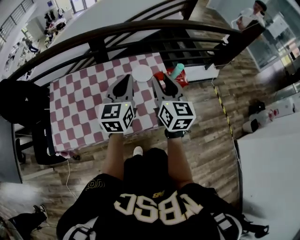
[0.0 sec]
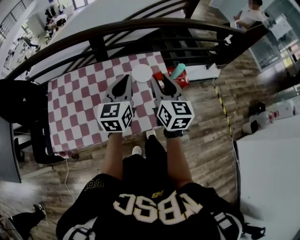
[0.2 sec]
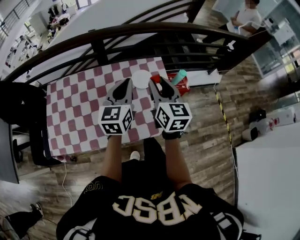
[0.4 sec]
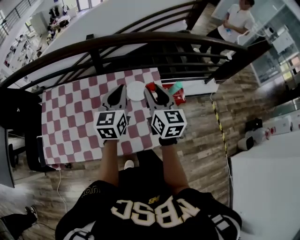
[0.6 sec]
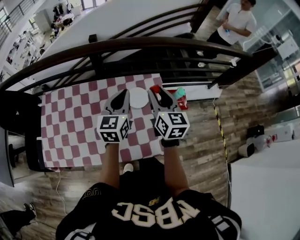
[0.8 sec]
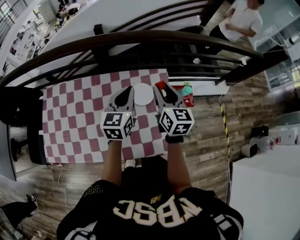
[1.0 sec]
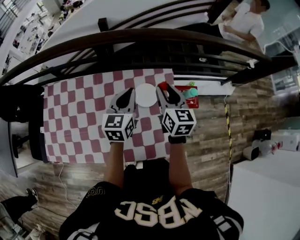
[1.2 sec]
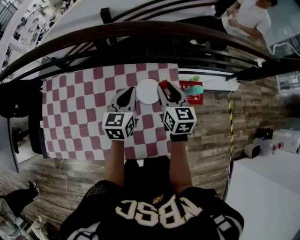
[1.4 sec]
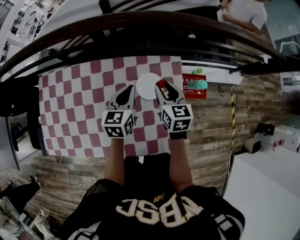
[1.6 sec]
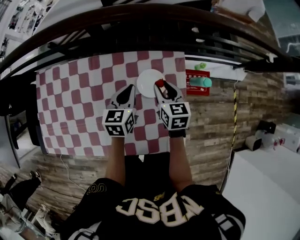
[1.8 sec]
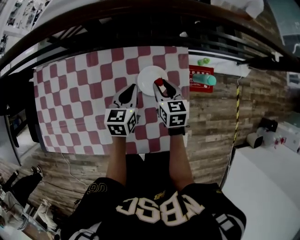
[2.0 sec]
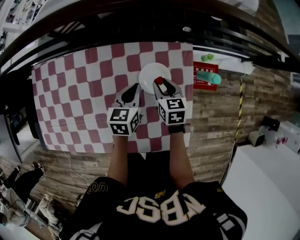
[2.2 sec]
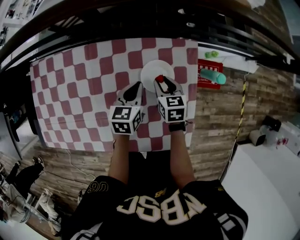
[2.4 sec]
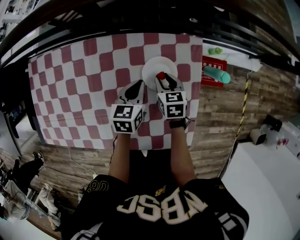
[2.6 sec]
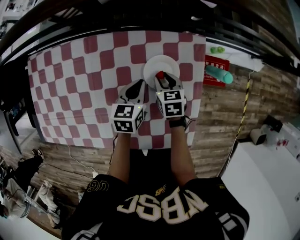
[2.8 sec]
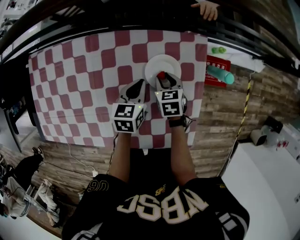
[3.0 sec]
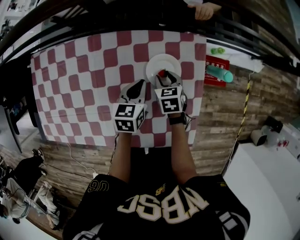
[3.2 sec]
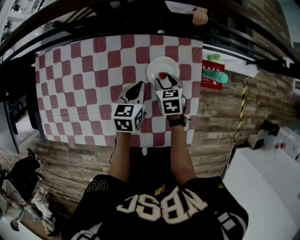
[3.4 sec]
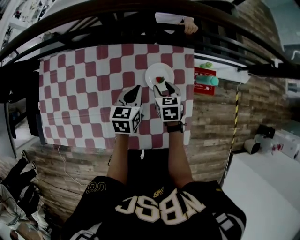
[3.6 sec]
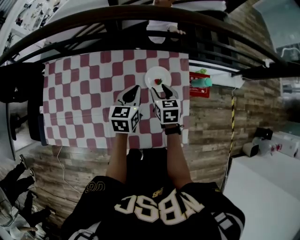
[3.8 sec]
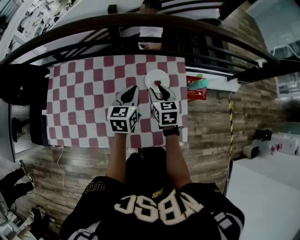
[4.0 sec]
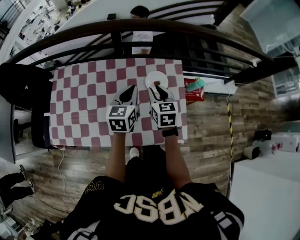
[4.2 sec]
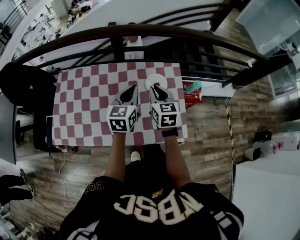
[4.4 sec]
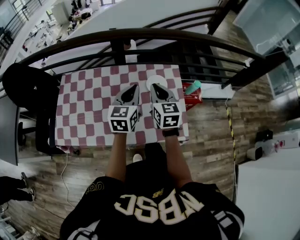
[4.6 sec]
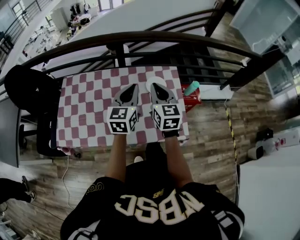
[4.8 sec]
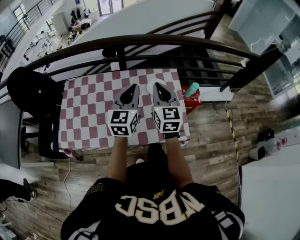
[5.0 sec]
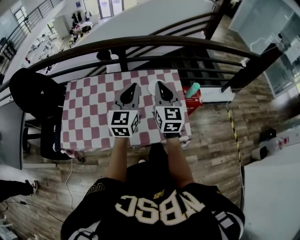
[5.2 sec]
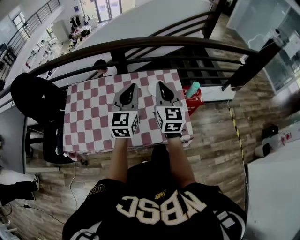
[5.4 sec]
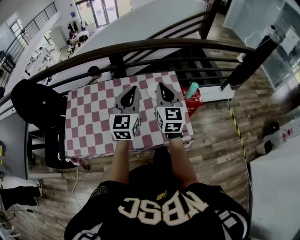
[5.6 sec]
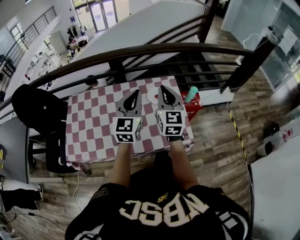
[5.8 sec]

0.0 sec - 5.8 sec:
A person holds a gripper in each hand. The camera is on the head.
0.0 sec - 1.4 sec: The grippers both shift forward and downward by approximately 30 cm. The right gripper swivels approximately 20 degrees.
1.4 sec - 2.8 sec: The two grippers go about 25 cm downward. The right gripper rotates about 30 degrees. Meanwhile the left gripper turns by some 20 degrees.
2.8 sec - 4.4 sec: Both grippers travel together upward and backward, about 30 cm. The right gripper turns by some 30 degrees, while the left gripper rotates about 30 degrees.
4.4 sec - 5.8 sec: Both grippers move upward and backward, roughly 15 cm. The left gripper swivels about 30 degrees; the right gripper rotates some 30 degrees.

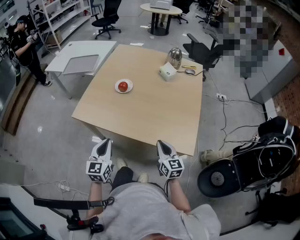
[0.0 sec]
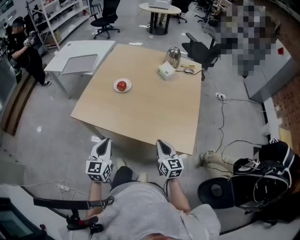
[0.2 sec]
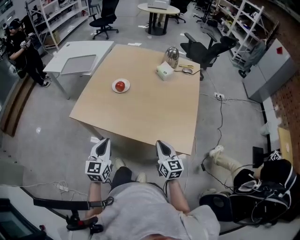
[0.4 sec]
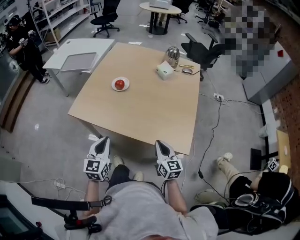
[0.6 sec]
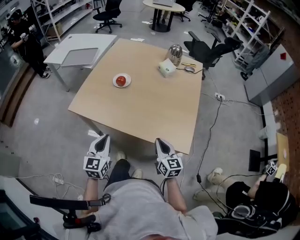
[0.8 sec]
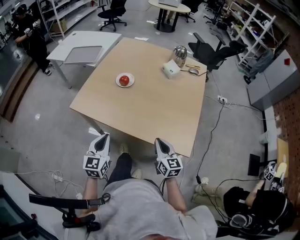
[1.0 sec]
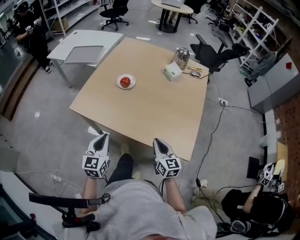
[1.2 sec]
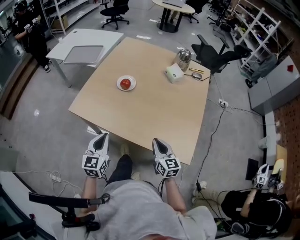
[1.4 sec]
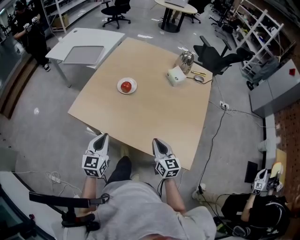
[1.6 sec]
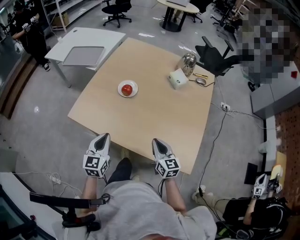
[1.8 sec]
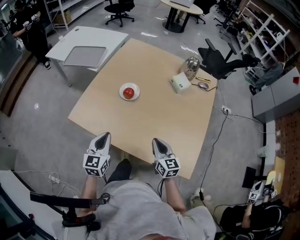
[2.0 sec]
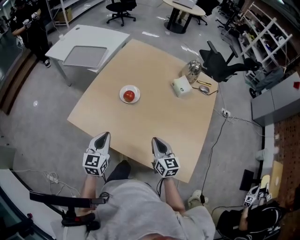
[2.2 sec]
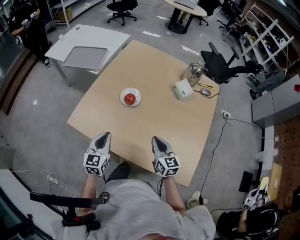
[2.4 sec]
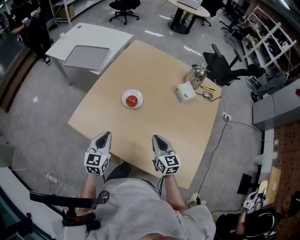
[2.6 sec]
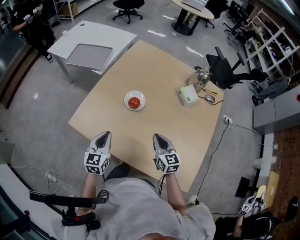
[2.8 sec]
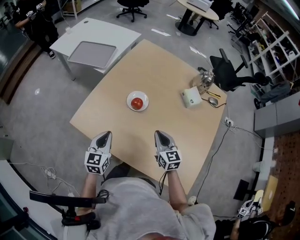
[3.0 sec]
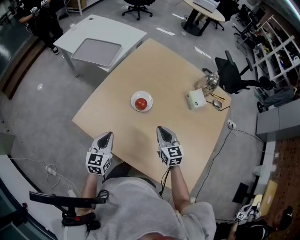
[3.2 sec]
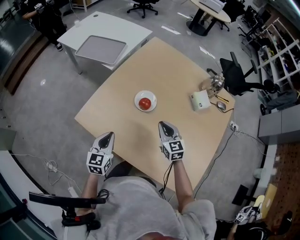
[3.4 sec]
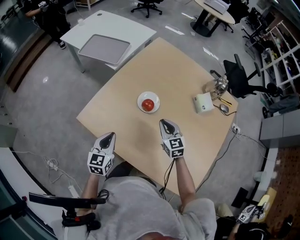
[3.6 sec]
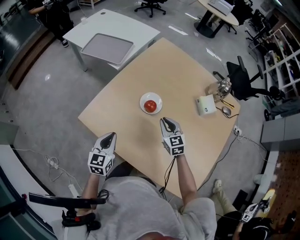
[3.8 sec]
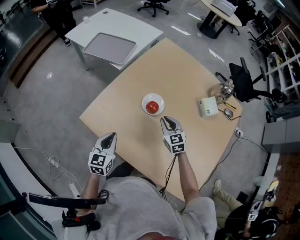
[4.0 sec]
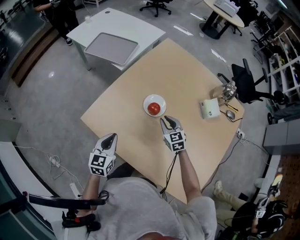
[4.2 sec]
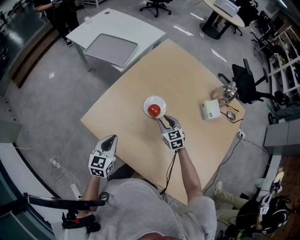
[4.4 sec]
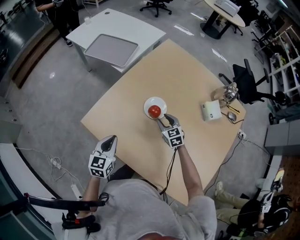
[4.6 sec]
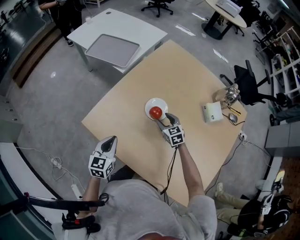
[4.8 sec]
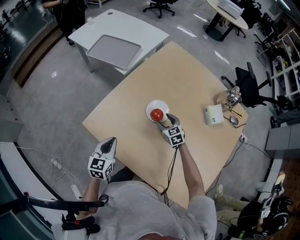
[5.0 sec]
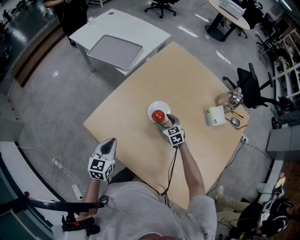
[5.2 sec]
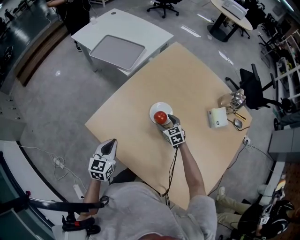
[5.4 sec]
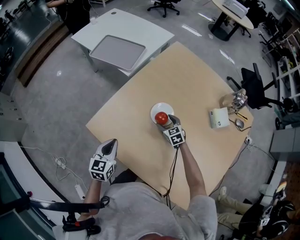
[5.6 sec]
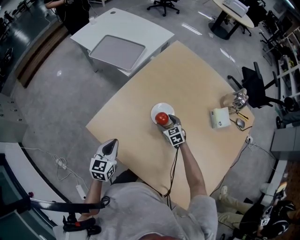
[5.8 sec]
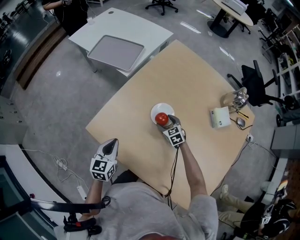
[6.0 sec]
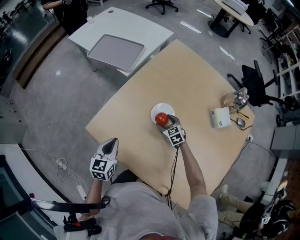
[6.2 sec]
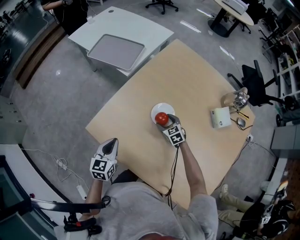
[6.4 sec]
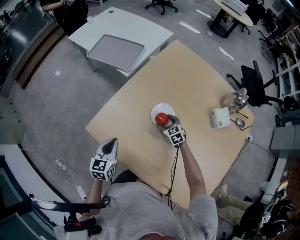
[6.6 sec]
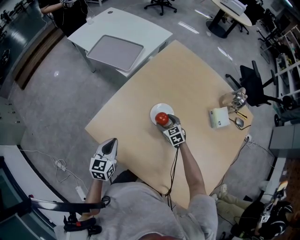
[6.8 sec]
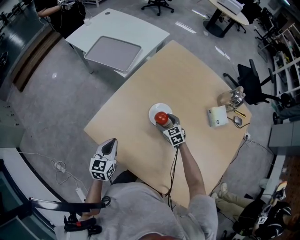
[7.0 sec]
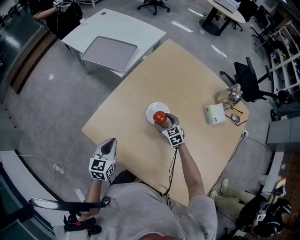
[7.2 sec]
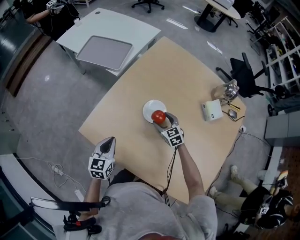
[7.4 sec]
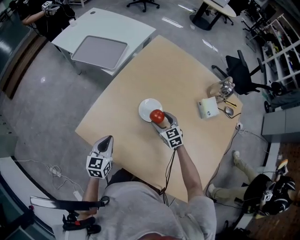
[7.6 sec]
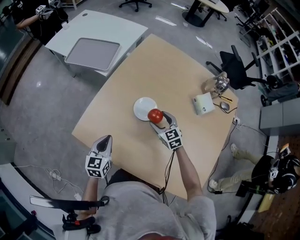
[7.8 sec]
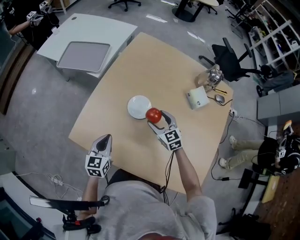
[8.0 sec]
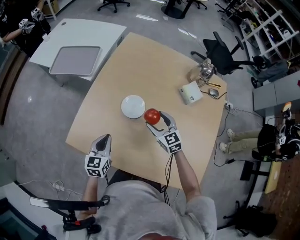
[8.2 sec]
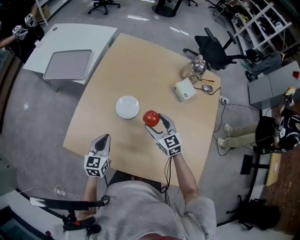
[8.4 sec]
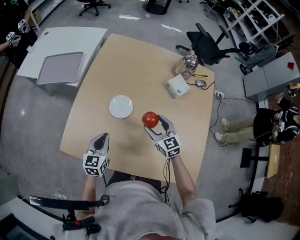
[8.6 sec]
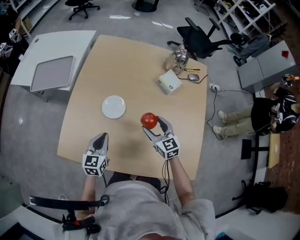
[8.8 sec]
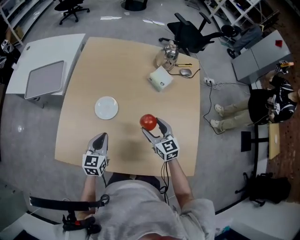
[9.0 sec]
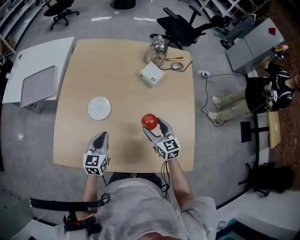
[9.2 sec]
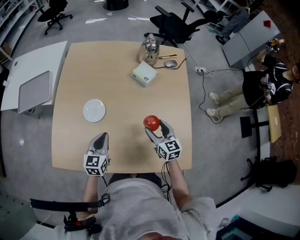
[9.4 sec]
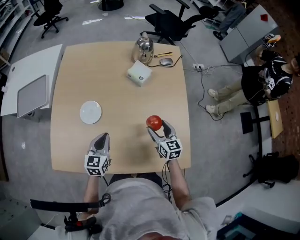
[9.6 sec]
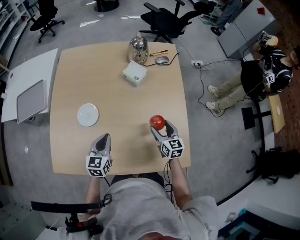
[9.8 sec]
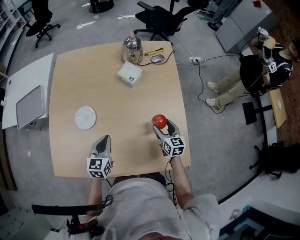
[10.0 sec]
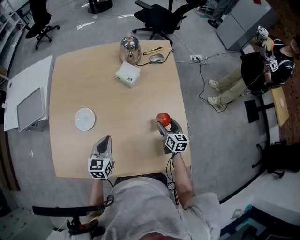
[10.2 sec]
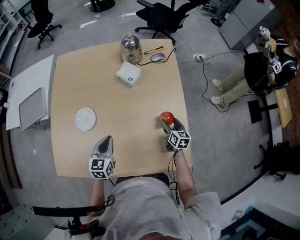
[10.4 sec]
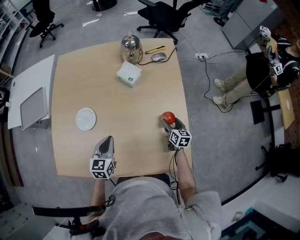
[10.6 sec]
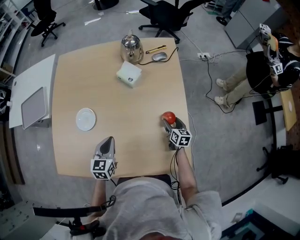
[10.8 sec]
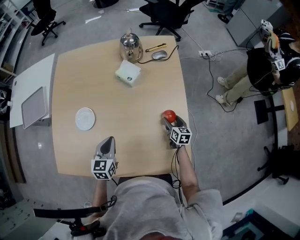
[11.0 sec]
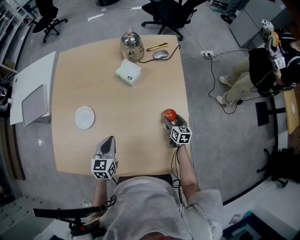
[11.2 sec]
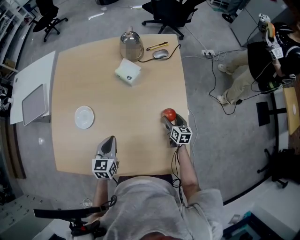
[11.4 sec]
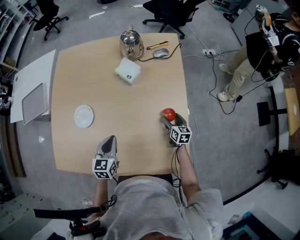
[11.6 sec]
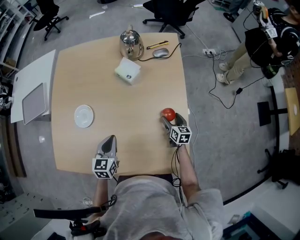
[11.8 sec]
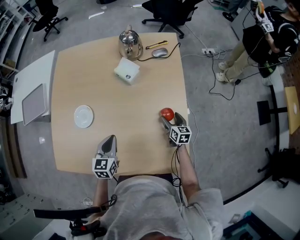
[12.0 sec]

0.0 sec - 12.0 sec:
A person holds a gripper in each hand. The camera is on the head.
0.0 sec - 1.6 sec: Both grippers move forward, roughly 10 cm.
1.6 sec - 3.0 sec: The grippers both shift forward by some 20 cm.
3.0 sec - 4.4 sec: The left gripper shifts by roughly 5 cm, while the right gripper heads forward and downward, covering roughly 20 cm, and changes its angle by some 20 degrees.
4.4 sec - 6.0 sec: The left gripper changes place by approximately 5 cm, while the right gripper goes approximately 10 cm downward and forward, and opens its fingers.
6.0 sec - 7.6 sec: The right gripper is displaced upward by roughly 5 cm.
7.6 sec - 9.0 sec: The right gripper changes place by roughly 20 cm, and turns by approximately 30 degrees. Meanwhile the left gripper shifts by about 15 cm, and changes its angle by approximately 20 degrees.
9.0 sec - 10.4 sec: The left gripper moves to the right, approximately 15 cm, while the right gripper moves to the right and downward, about 30 cm, and rotates roughly 40 degrees.
10.4 sec - 12.0 sec: The right gripper changes place by approximately 5 cm; the left gripper ends up about 5 cm from where it was.

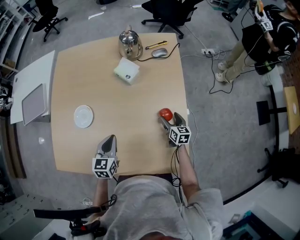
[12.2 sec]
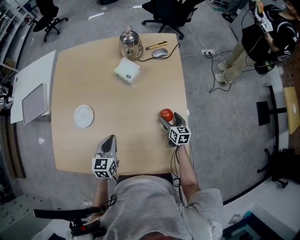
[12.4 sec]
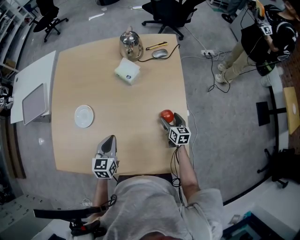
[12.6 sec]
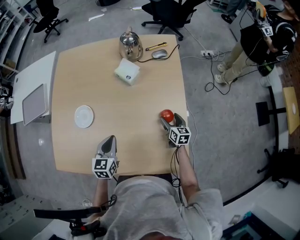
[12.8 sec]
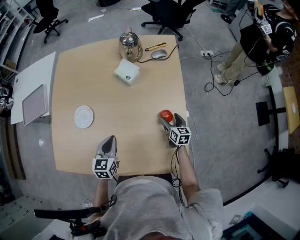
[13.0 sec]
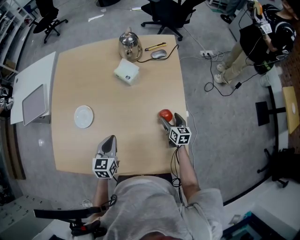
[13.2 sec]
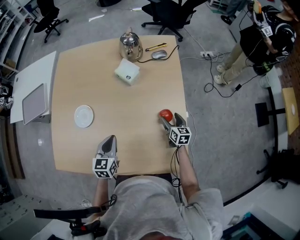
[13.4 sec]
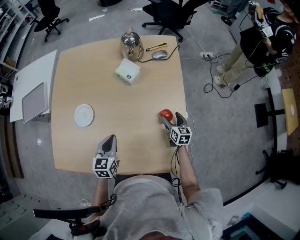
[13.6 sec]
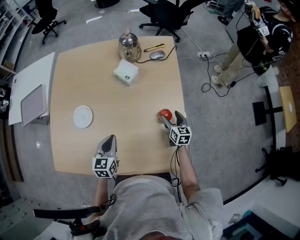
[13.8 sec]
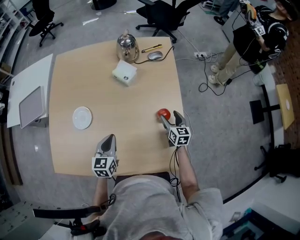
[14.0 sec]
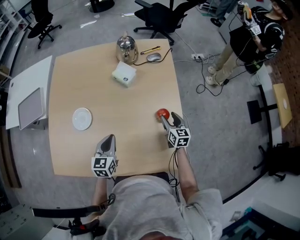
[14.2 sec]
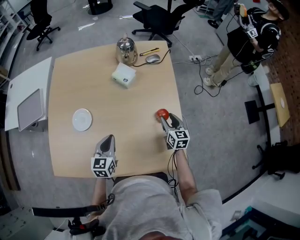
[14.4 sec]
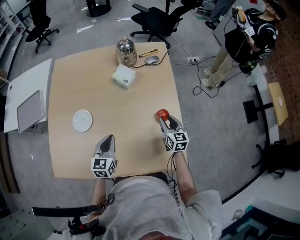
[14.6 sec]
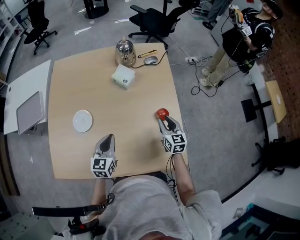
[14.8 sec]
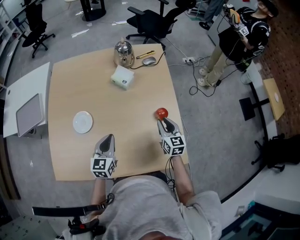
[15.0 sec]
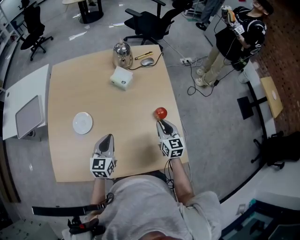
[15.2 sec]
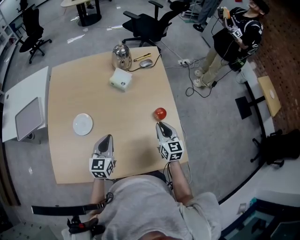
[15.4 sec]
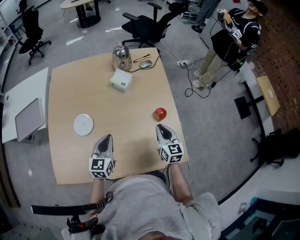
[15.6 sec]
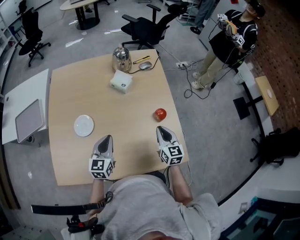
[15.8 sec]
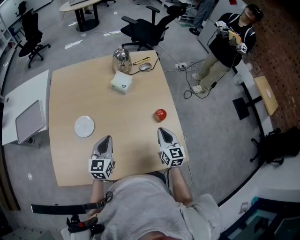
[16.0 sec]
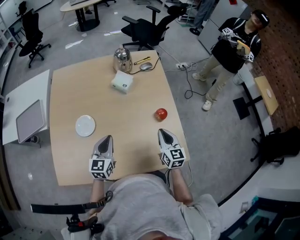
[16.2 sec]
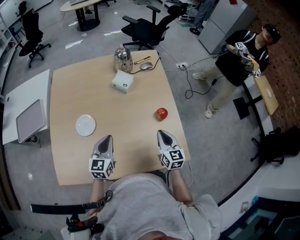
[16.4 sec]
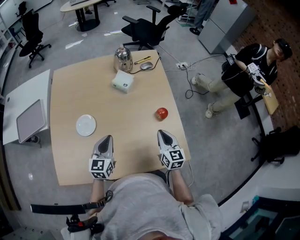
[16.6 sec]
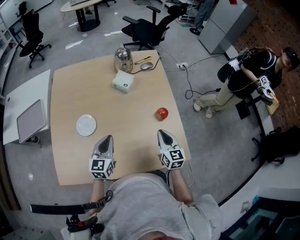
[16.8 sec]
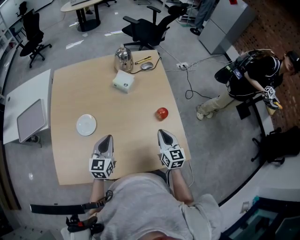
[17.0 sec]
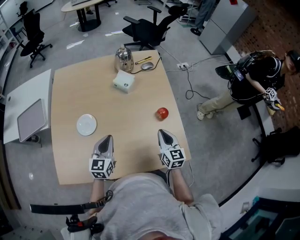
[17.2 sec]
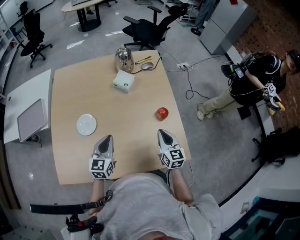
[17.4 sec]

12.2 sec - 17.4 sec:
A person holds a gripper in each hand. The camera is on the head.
12.2 sec - 14.0 sec: The right gripper moves upward, approximately 5 cm.
14.0 sec - 15.6 sec: The right gripper is displaced upward, backward and to the left by roughly 20 cm, and closes up. Meanwhile the left gripper travels upward by about 5 cm.
15.6 sec - 17.4 sec: The grippers stay close to where they were, moving slightly.
